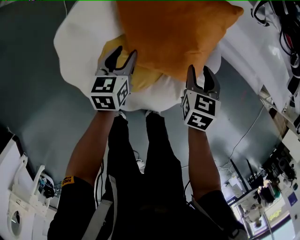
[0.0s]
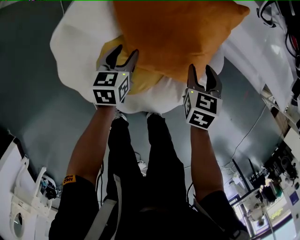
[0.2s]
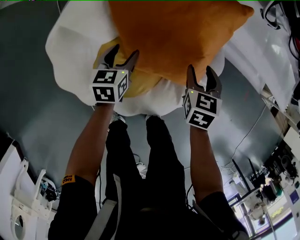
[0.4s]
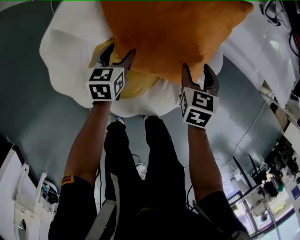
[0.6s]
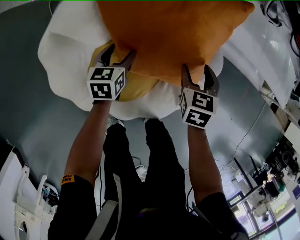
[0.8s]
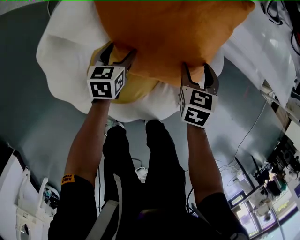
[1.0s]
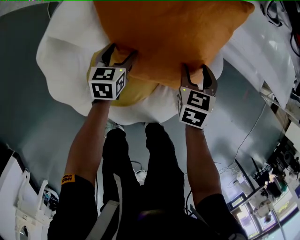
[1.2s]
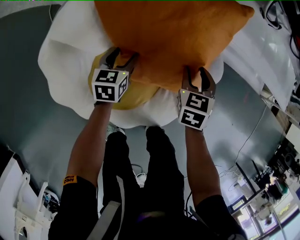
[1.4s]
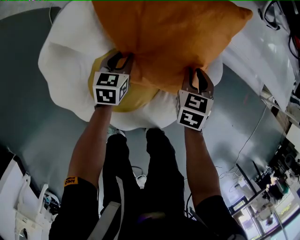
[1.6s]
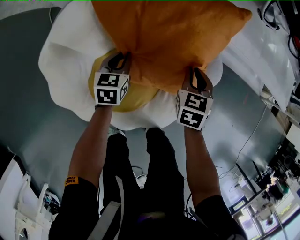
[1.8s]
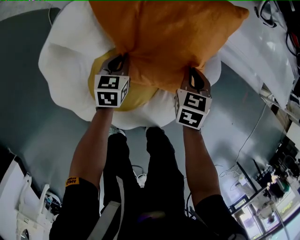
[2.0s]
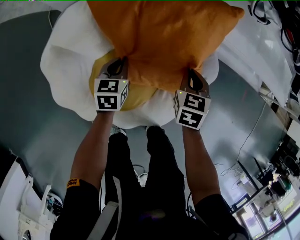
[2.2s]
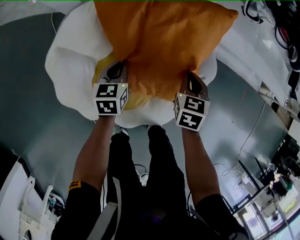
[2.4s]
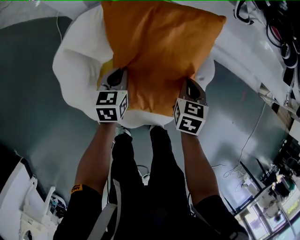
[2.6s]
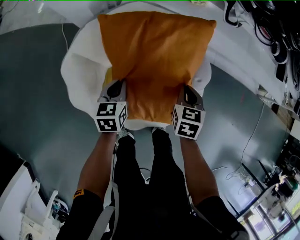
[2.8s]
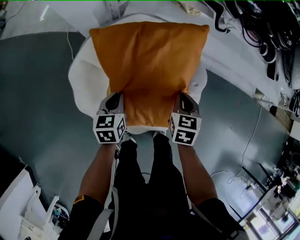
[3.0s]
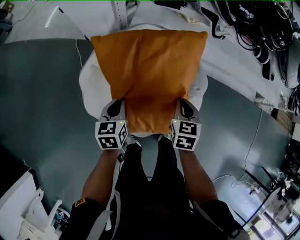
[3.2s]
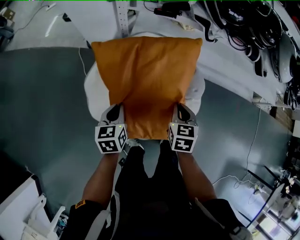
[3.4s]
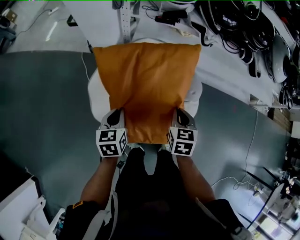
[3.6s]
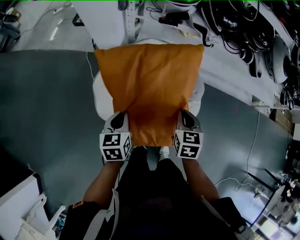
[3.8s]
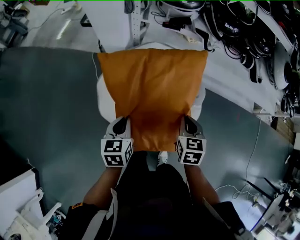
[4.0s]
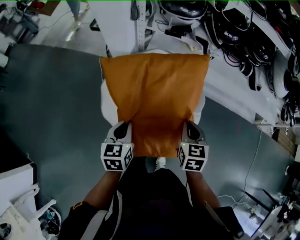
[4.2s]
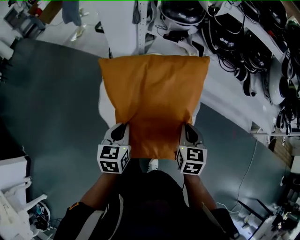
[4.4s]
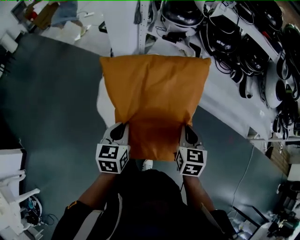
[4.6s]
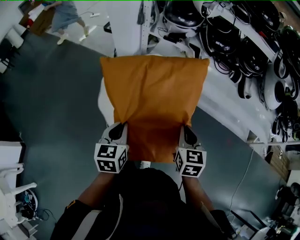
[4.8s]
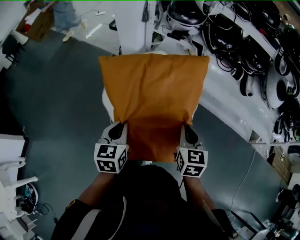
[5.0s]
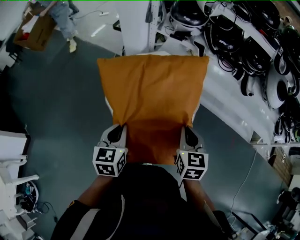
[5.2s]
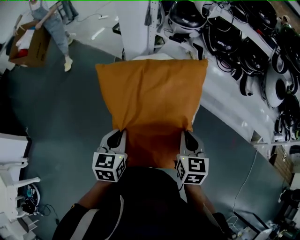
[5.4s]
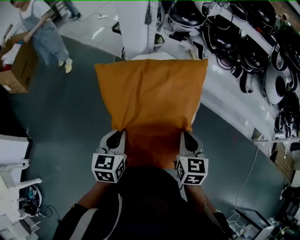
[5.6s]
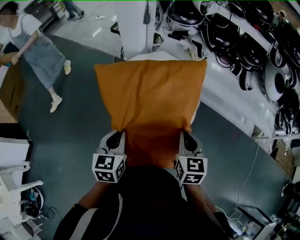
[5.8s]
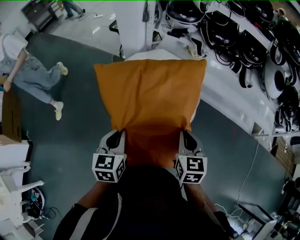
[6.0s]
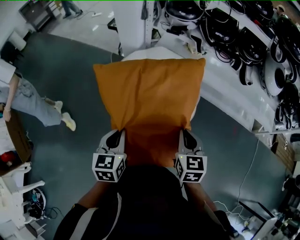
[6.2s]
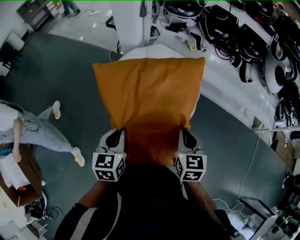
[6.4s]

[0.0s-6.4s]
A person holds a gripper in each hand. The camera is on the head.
0.0s to 1.6s: The left gripper is displaced downward and forward by approximately 15 cm, and opens, then closes once more. The right gripper heads downward, covering roughly 10 cm, and opens, then closes again.
1.6s to 3.2s: Both grippers travel together upward and backward, about 25 cm. The left gripper closes.
3.2s to 4.8s: Both grippers travel together upward and backward, some 35 cm. The right gripper swivels approximately 20 degrees.
4.8s to 6.4s: The grippers both shift backward by about 10 cm.

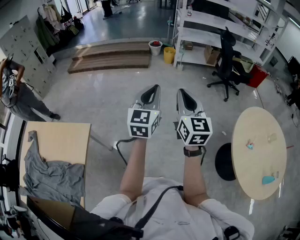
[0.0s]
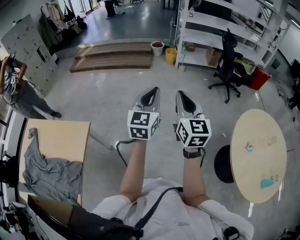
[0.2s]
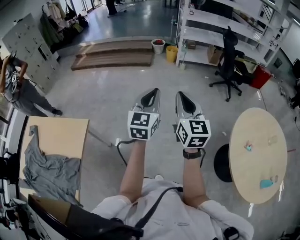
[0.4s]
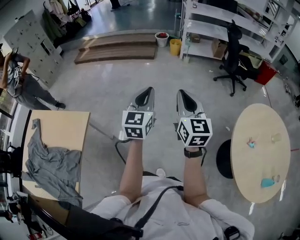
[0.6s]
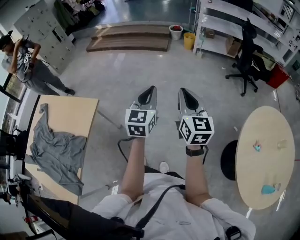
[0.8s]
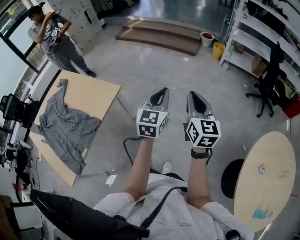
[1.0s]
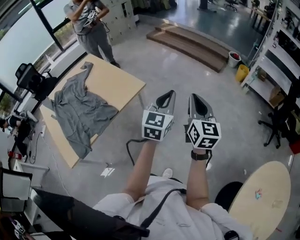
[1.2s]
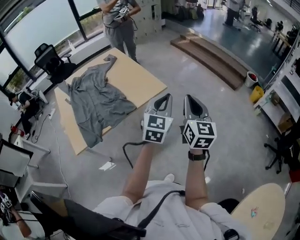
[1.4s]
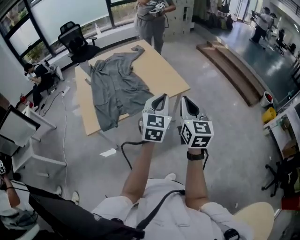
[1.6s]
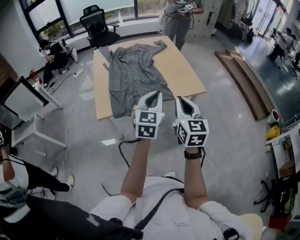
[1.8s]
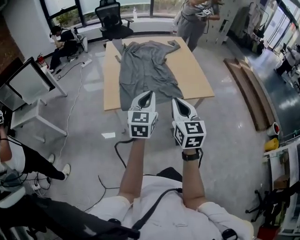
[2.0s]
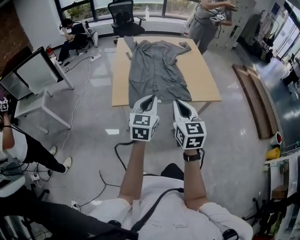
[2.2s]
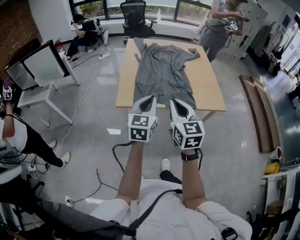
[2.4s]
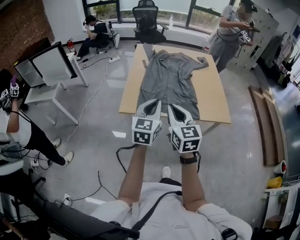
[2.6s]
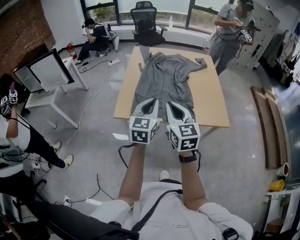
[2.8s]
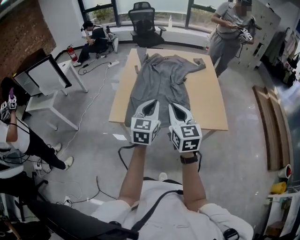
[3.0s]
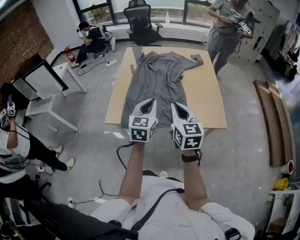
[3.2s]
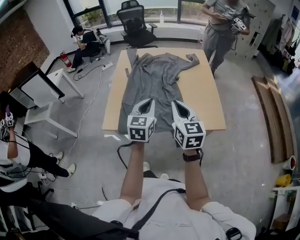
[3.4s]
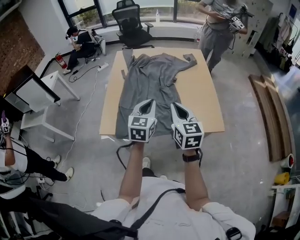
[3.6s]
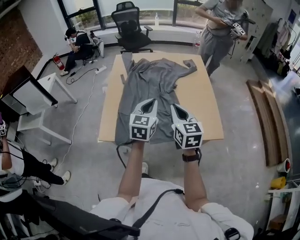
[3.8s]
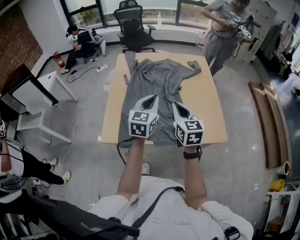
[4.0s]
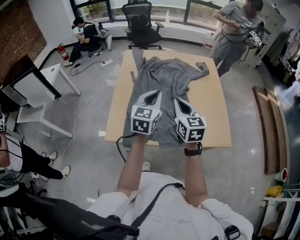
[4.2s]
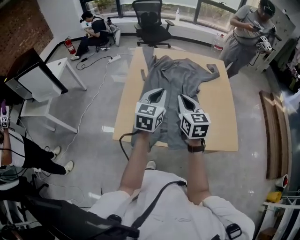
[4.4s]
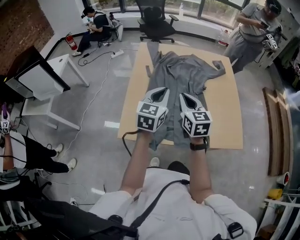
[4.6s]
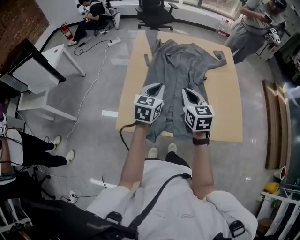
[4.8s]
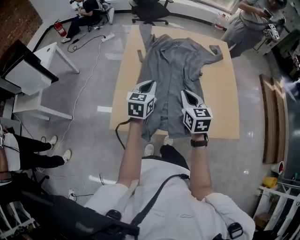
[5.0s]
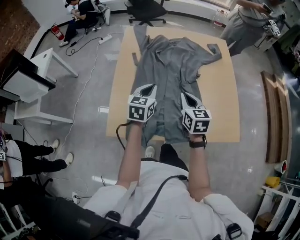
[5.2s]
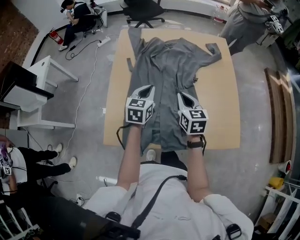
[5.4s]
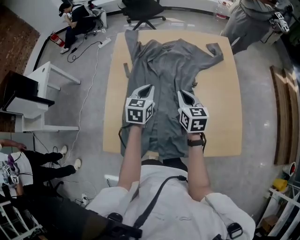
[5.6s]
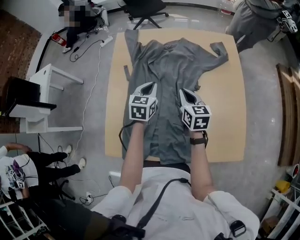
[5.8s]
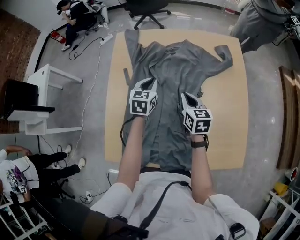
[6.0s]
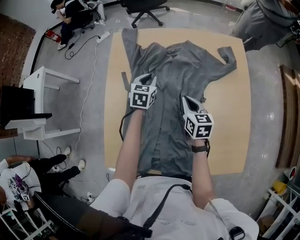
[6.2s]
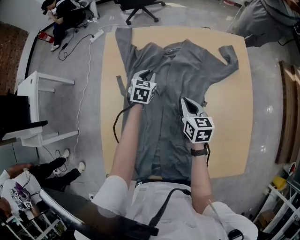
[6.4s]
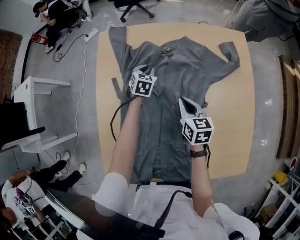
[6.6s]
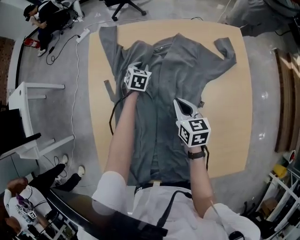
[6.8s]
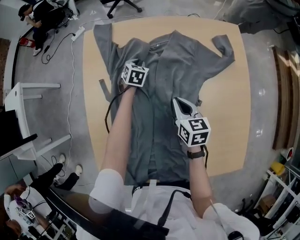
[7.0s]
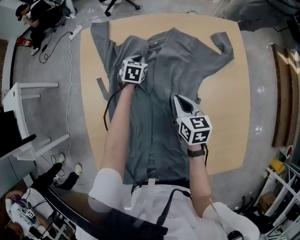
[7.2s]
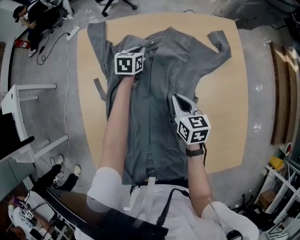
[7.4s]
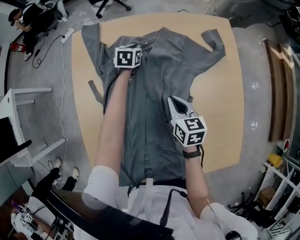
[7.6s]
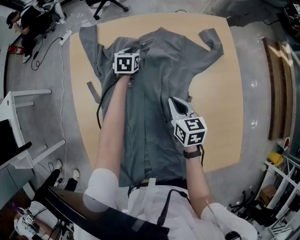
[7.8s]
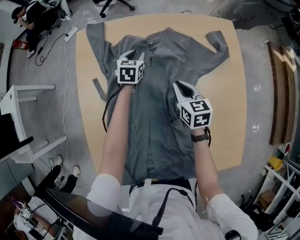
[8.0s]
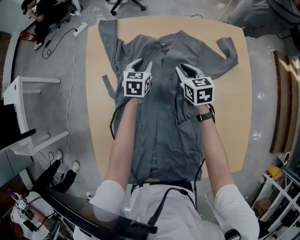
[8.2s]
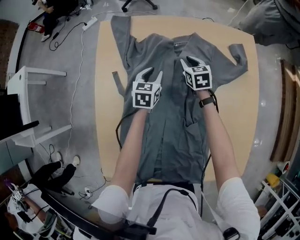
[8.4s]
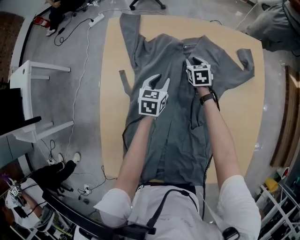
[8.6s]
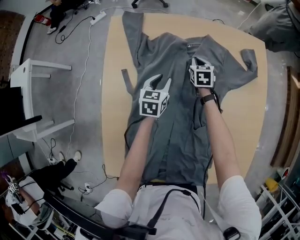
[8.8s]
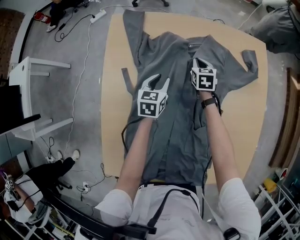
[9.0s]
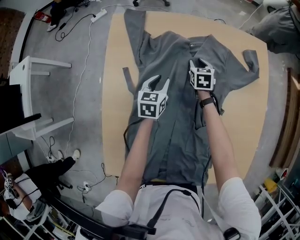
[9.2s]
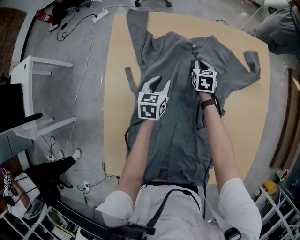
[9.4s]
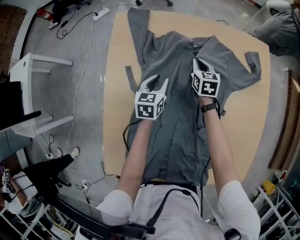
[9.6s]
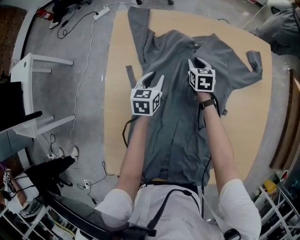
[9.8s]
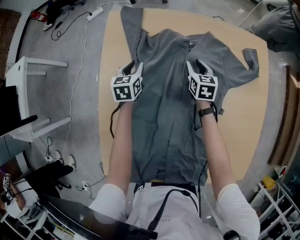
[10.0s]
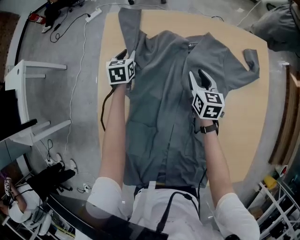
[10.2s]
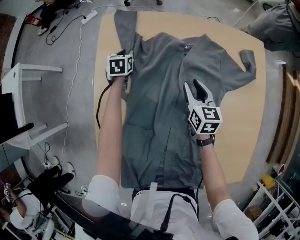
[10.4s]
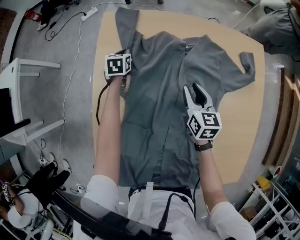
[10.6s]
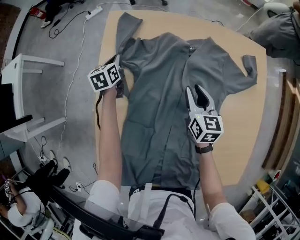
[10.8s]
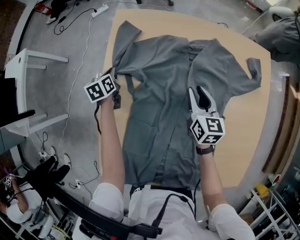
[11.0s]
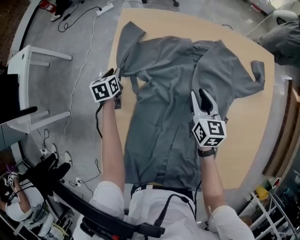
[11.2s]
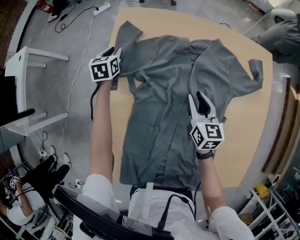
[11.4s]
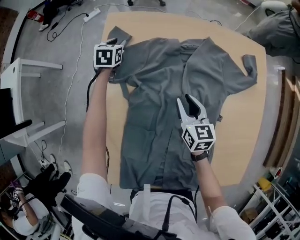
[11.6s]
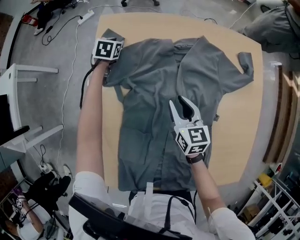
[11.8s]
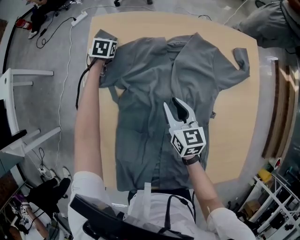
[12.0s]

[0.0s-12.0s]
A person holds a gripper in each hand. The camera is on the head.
0.0s to 1.6s: Both grippers are carried approximately 40 cm. The right gripper rotates approximately 60 degrees. Meanwhile the left gripper rotates approximately 60 degrees.
1.6s to 3.0s: The right gripper changes place by roughly 25 cm, and turns by some 40 degrees; the left gripper ends up some 25 cm from where it was, and turns by roughly 30 degrees.
3.0s to 4.4s: The two grippers go roughly 25 cm forward.
4.4s to 6.0s: The right gripper is displaced forward, downward and to the right by about 30 cm, and turns by about 20 degrees. Meanwhile the left gripper is displaced forward and downward by approximately 35 cm, and turns by some 20 degrees.
6.0s to 7.6s: The right gripper goes approximately 10 cm downward and forward. Meanwhile the left gripper travels forward and downward by about 30 cm.
7.6s to 9.0s: The left gripper travels backward and to the left by some 15 cm, and opens up. The right gripper travels forward and downward by roughly 25 cm.
9.0s to 10.4s: The right gripper is displaced backward and upward by approximately 15 cm, and opens up. Meanwhile the left gripper travels to the left, forward and downward by about 20 cm.
10.4s to 12.0s: The right gripper shifts some 10 cm to the left and backward. The left gripper heads forward, covering approximately 5 cm.

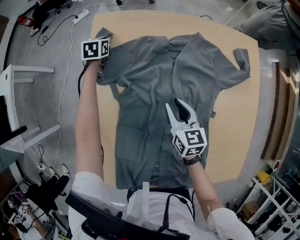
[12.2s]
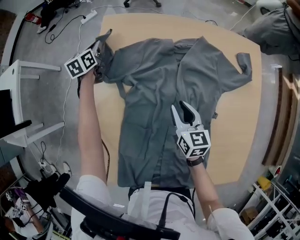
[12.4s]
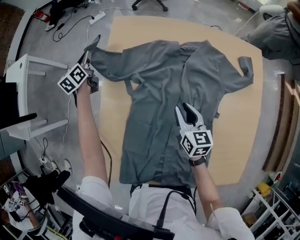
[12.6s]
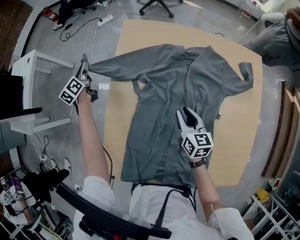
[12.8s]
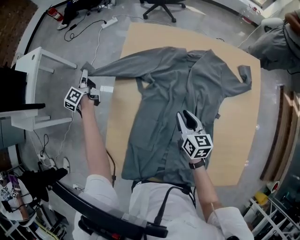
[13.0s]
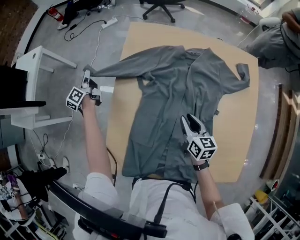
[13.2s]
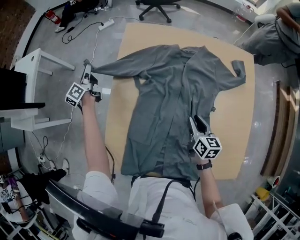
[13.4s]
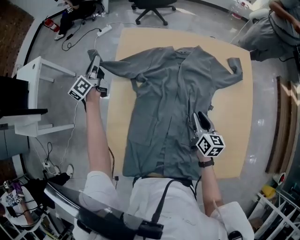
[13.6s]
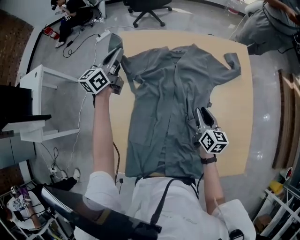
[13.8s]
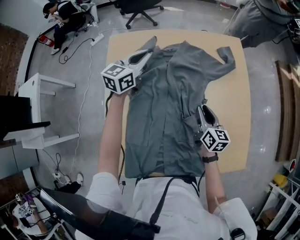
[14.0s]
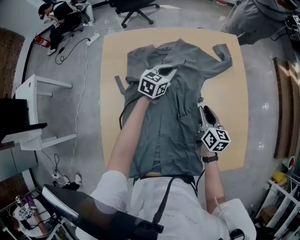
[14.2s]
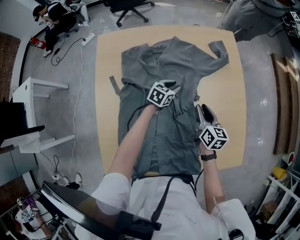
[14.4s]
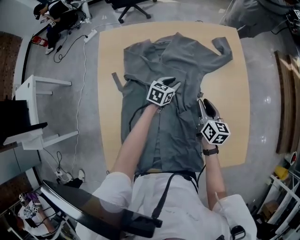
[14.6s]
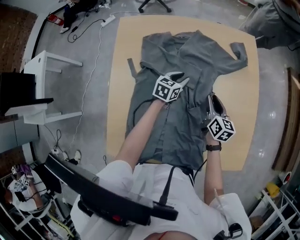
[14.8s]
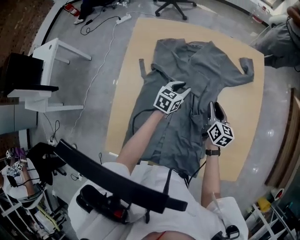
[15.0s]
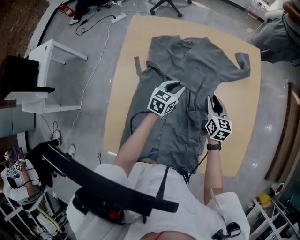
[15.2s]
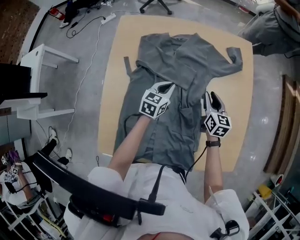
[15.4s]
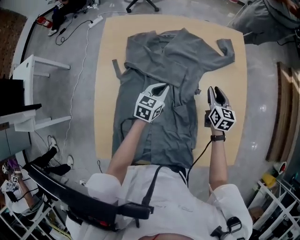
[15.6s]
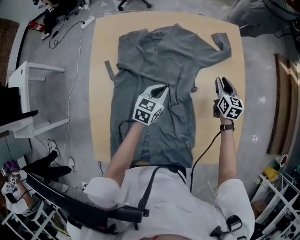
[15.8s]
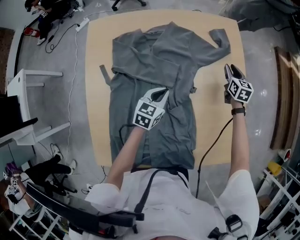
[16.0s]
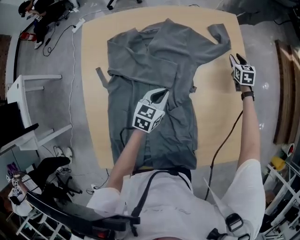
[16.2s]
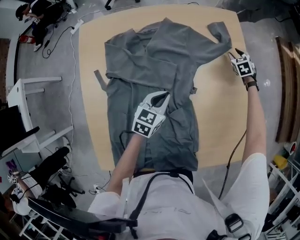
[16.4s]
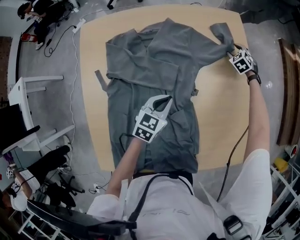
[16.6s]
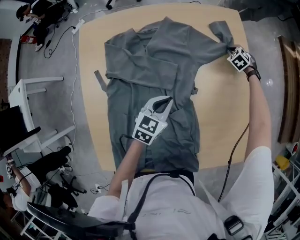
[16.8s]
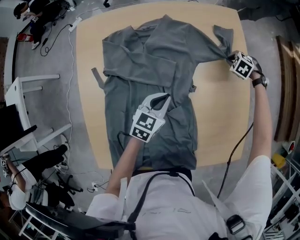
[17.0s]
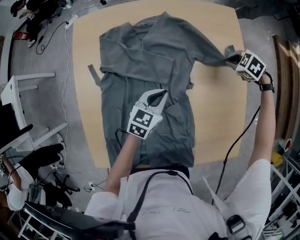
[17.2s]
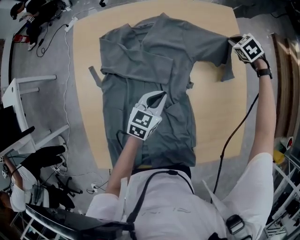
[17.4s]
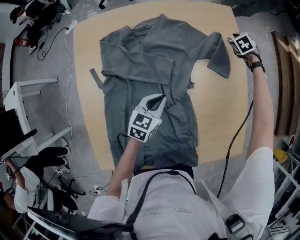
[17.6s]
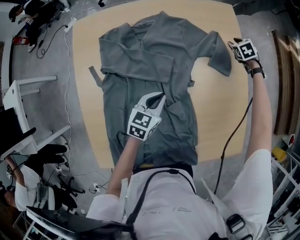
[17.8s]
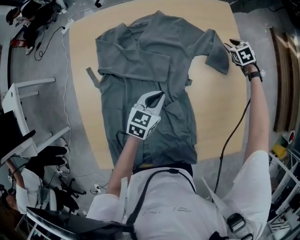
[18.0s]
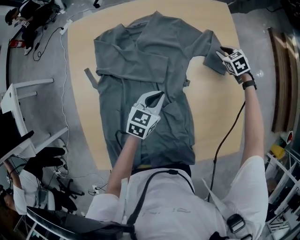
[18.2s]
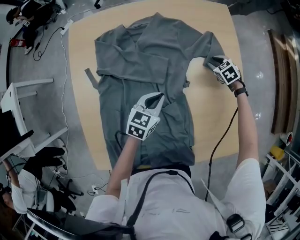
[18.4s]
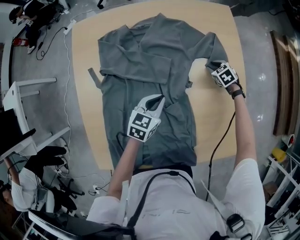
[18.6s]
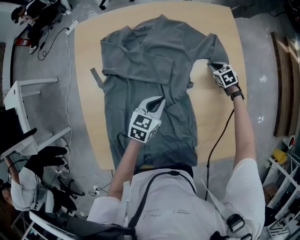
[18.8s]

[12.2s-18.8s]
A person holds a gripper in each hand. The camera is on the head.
12.2s to 13.8s: The right gripper moves some 15 cm, while the left gripper moves upward, approximately 30 cm, and points its fingers roughly 50 degrees further upward.
13.8s to 15.4s: The right gripper heads to the right and forward, covering approximately 10 cm. Meanwhile the left gripper shifts approximately 35 cm to the right and downward, changes its angle by approximately 30 degrees, and opens and closes again.
15.4s to 17.2s: The left gripper moves some 5 cm. Meanwhile the right gripper moves approximately 20 cm downward and comes back, and tips its fingers downward by approximately 50 degrees.
17.2s to 18.8s: The right gripper moves downward, some 15 cm, changes its angle by about 30 degrees, and opens, then closes again.
